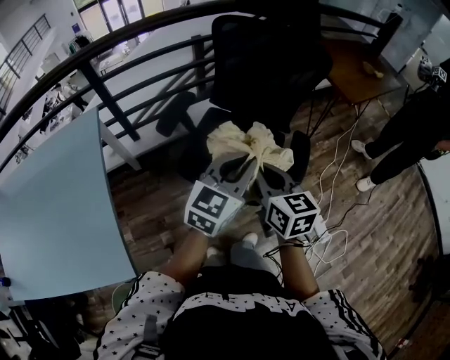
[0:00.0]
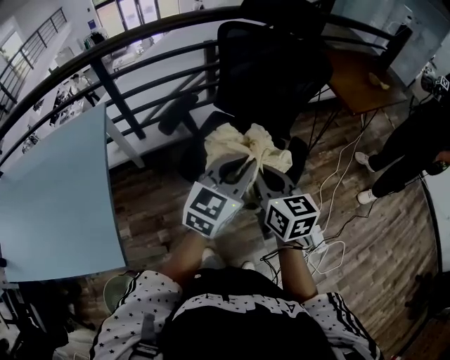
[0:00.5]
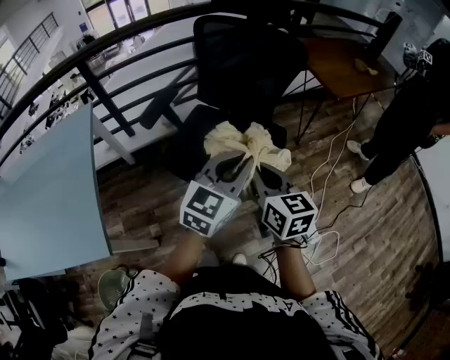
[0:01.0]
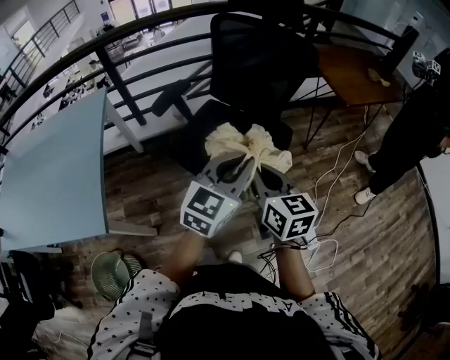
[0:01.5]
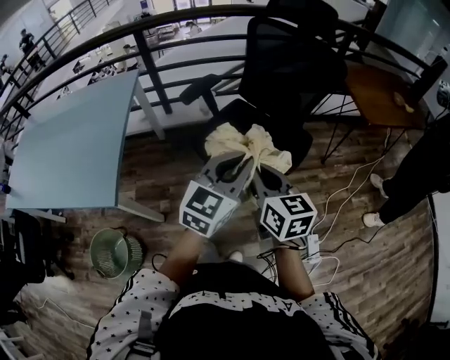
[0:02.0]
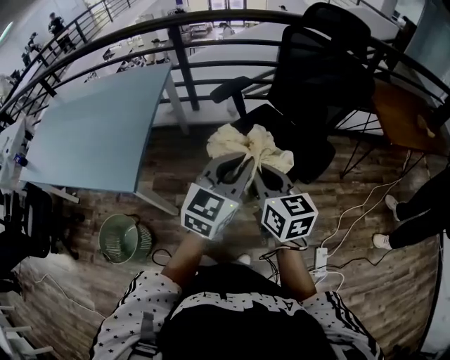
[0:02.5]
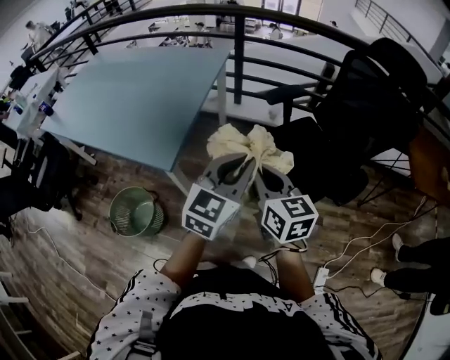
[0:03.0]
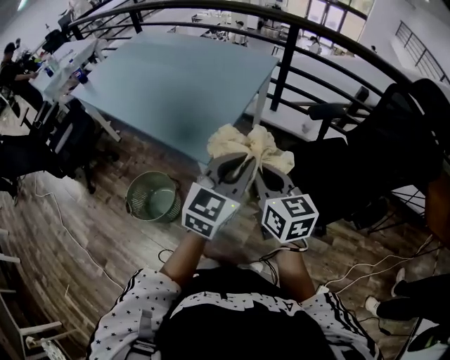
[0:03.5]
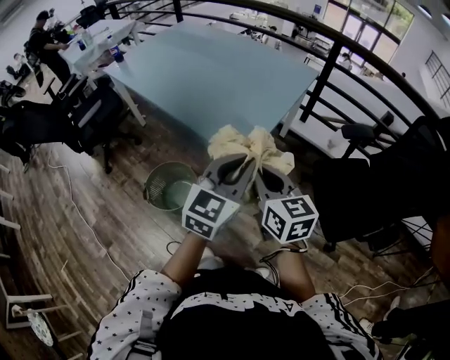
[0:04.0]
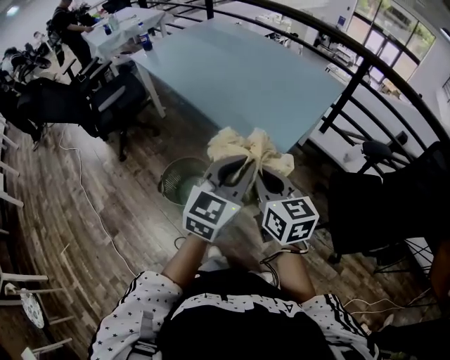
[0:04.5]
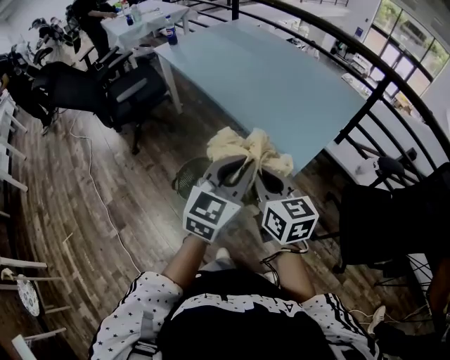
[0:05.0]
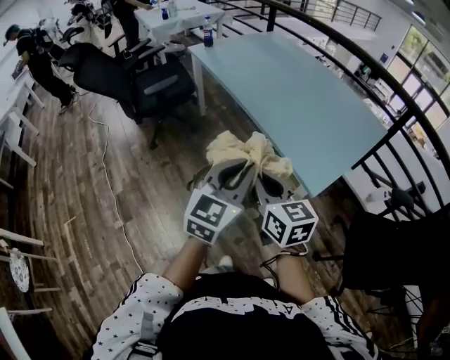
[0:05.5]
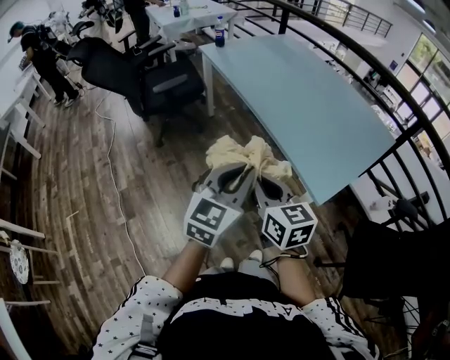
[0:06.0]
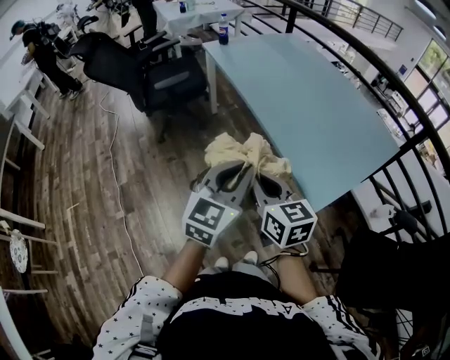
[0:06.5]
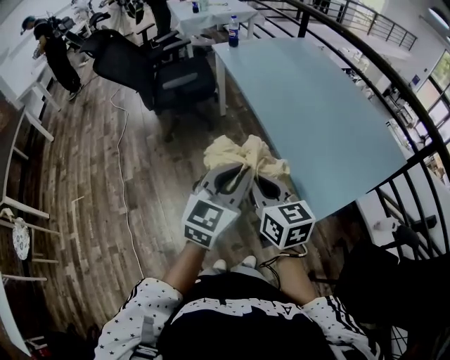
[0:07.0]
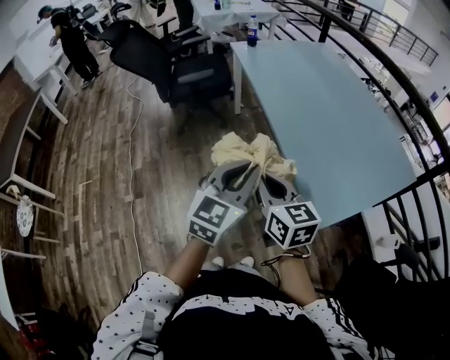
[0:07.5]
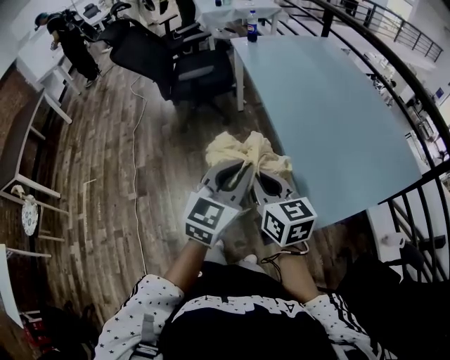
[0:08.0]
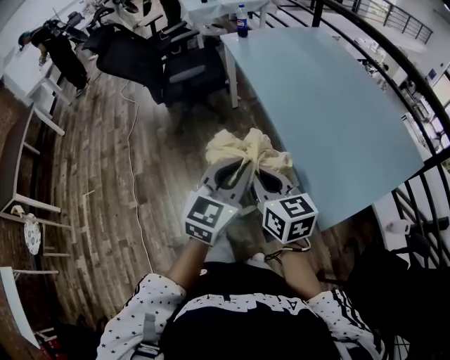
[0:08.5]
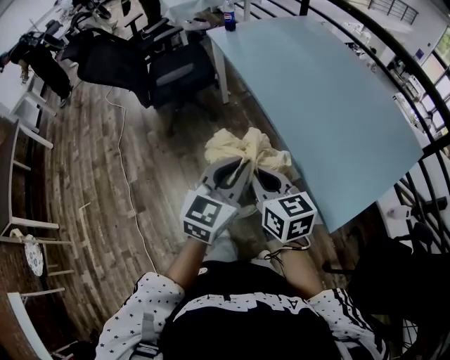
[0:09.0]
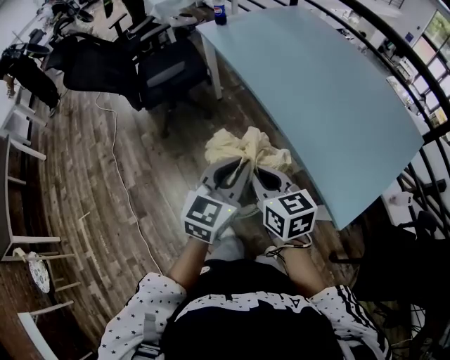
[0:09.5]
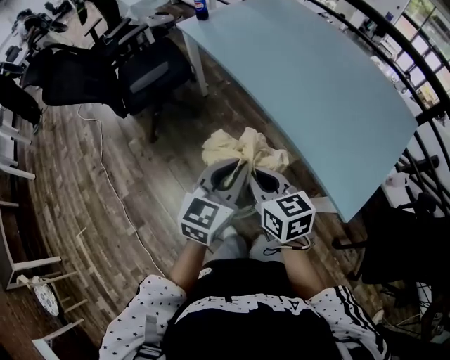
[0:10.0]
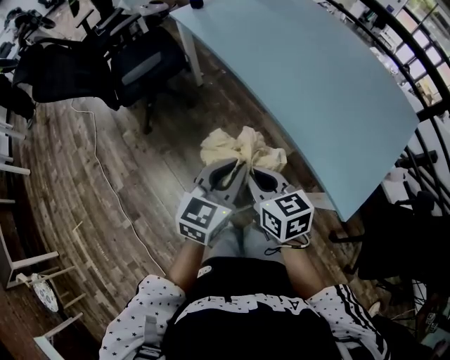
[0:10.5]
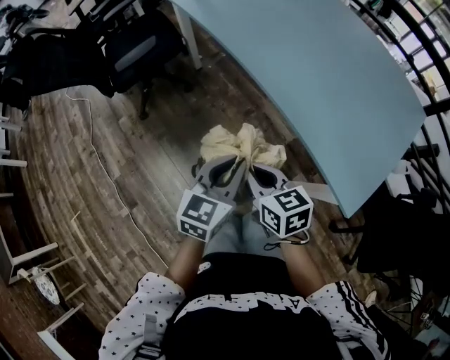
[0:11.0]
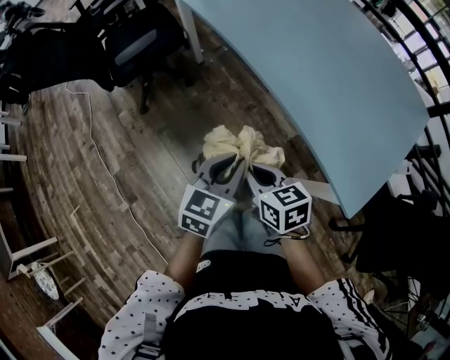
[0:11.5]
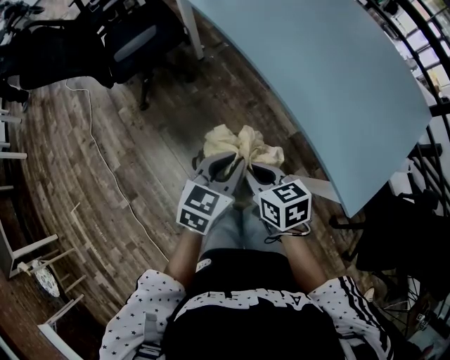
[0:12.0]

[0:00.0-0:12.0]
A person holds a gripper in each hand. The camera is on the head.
0:00.0 to 0:02.0: The two grippers go roughly 10 cm backward and to the right.
0:02.0 to 0:04.0: The pair of grippers is taken approximately 40 cm. The left gripper changes its angle by roughly 50 degrees, while the right gripper swivels approximately 50 degrees.
0:04.0 to 0:06.0: The grippers both shift to the left by some 30 cm. The left gripper turns by roughly 20 degrees. Meanwhile the right gripper changes its angle by about 20 degrees.
0:06.0 to 0:08.0: The grippers both shift forward by about 5 cm.
0:08.0 to 0:10.0: The grippers both shift forward, to the left and downward by approximately 20 cm. The left gripper swivels approximately 20 degrees.
0:10.0 to 0:12.0: The grippers both shift downward by approximately 10 cm.

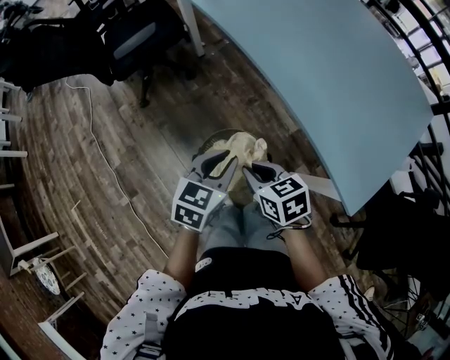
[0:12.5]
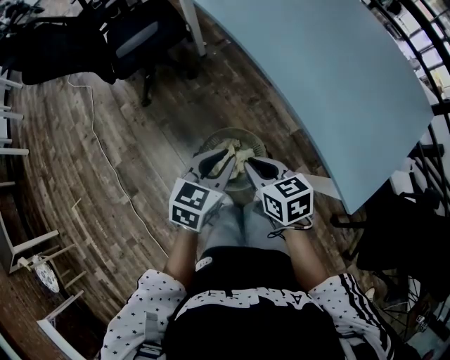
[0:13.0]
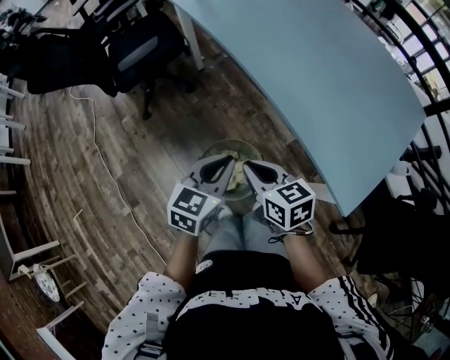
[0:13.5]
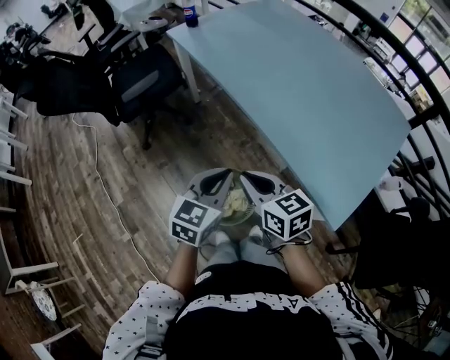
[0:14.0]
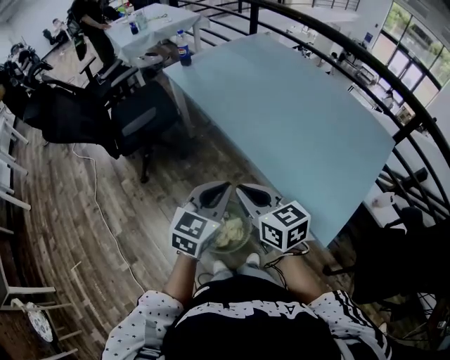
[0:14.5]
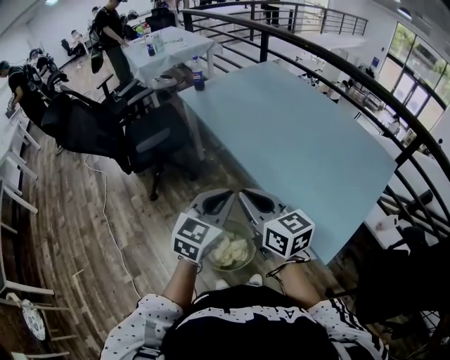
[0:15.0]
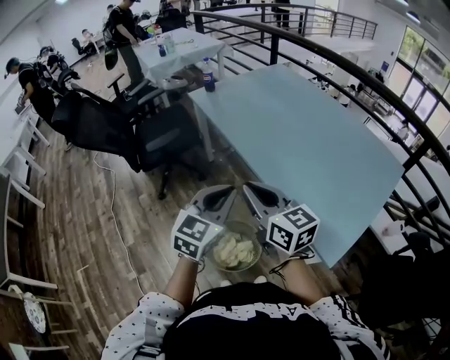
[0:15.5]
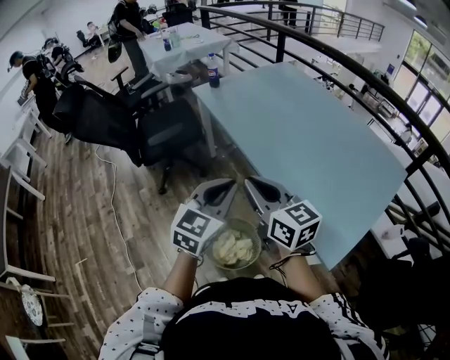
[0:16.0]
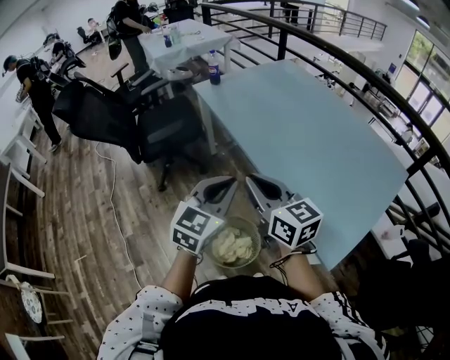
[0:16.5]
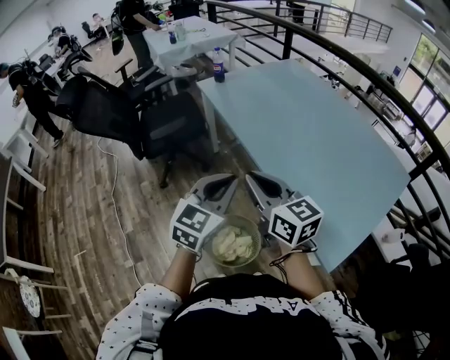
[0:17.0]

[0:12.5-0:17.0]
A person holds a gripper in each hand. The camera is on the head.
0:12.5 to 0:14.5: Both grippers move upward, roughly 15 cm. The right gripper rotates some 30 degrees.
0:14.5 to 0:17.0: Both grippers travel together upward, roughly 10 cm.

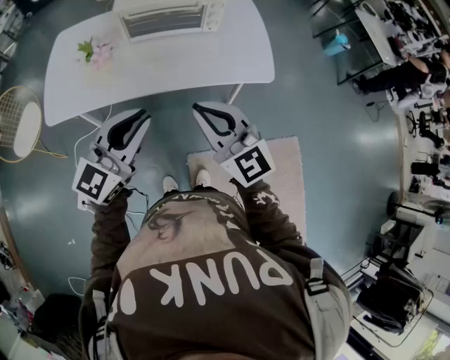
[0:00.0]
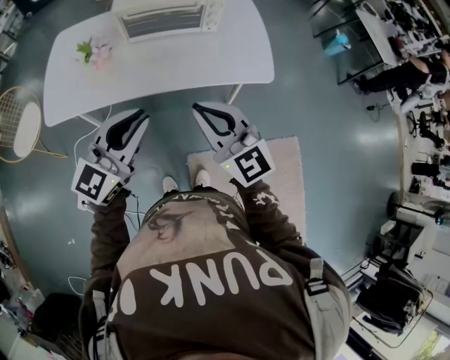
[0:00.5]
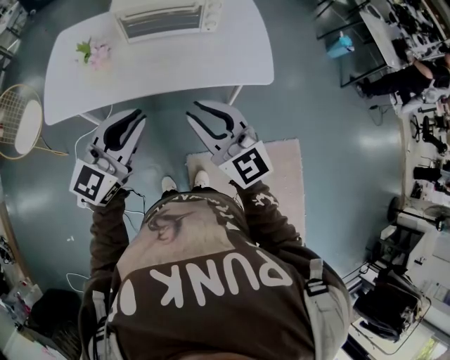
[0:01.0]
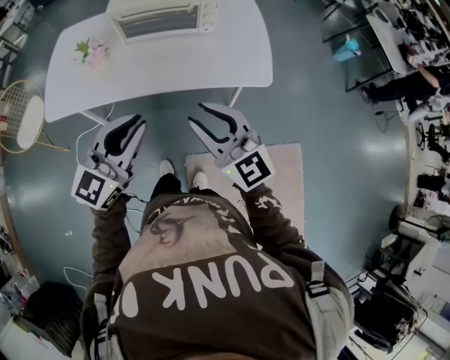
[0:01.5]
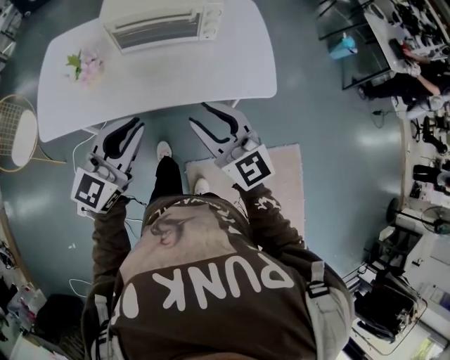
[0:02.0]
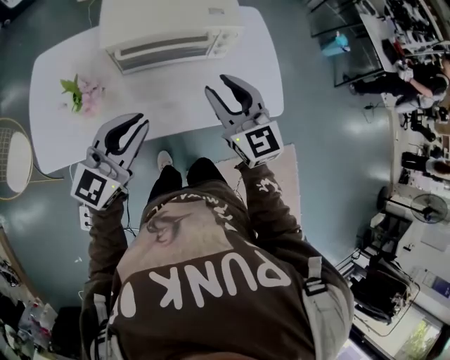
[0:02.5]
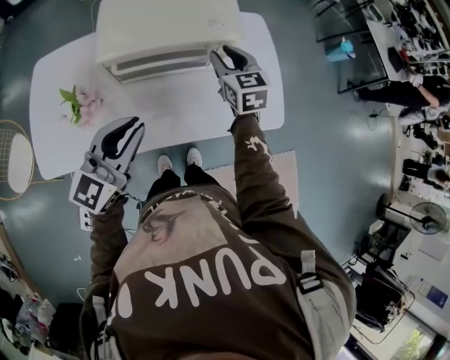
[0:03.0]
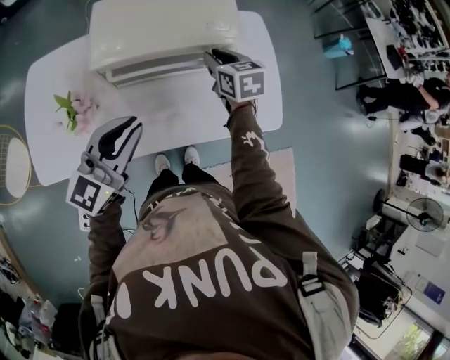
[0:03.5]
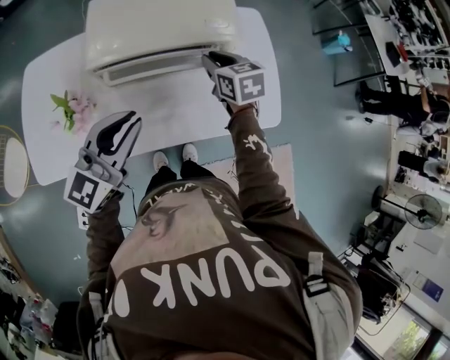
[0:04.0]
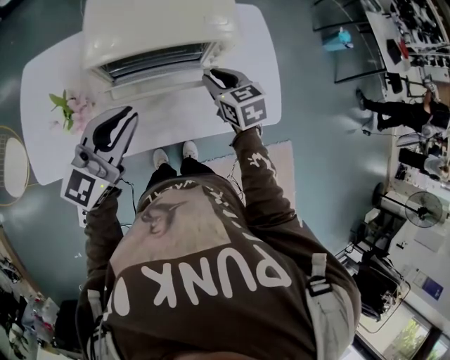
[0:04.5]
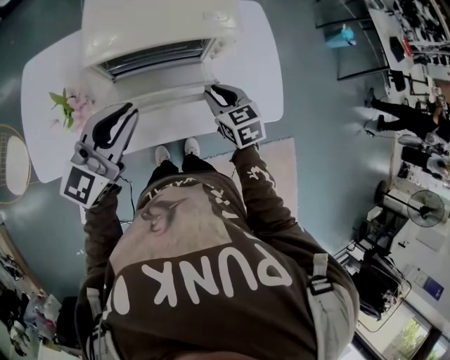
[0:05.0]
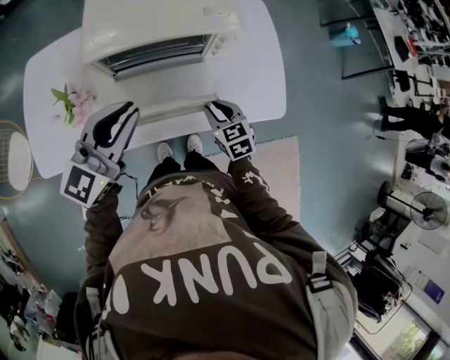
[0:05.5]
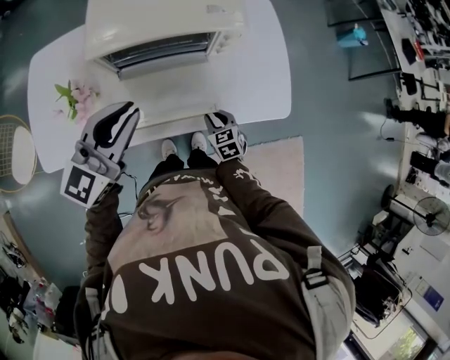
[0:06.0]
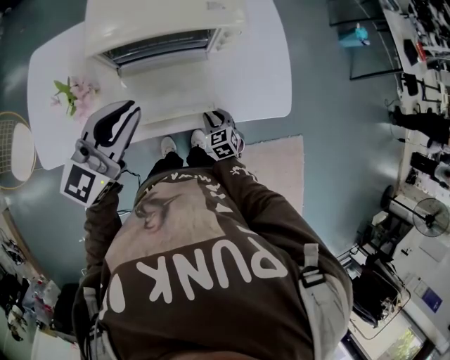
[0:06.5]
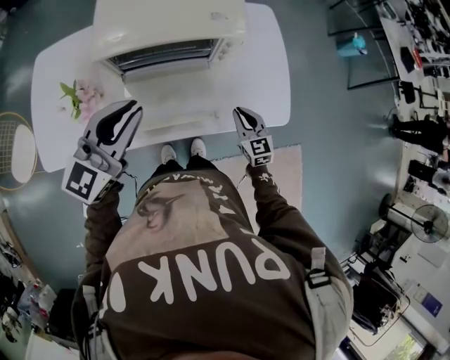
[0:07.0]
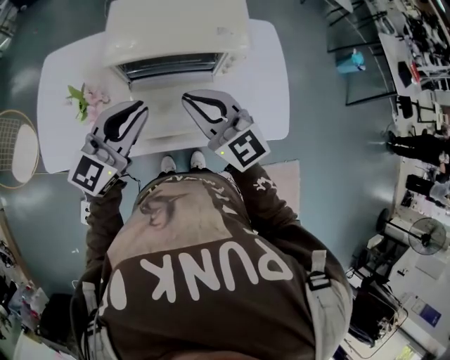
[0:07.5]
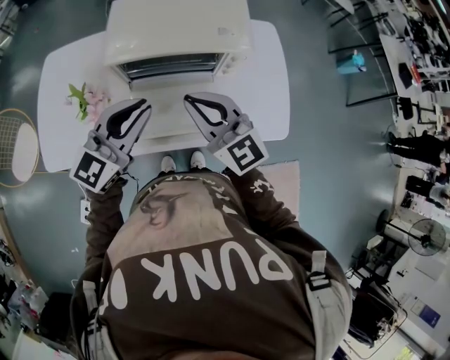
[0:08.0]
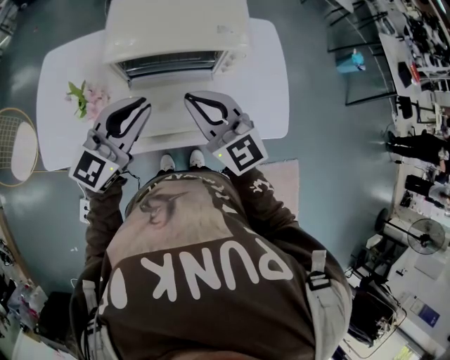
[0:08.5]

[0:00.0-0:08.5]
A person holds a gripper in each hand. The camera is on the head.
0:00.0 to 0:02.0: The two grippers go some 10 cm forward. The right gripper opens its fingers.
0:02.0 to 0:04.0: The left gripper shifts roughly 20 cm forward. Meanwhile the right gripper heads forward, covering about 35 cm, tips its fingers downward by about 30 degrees, and closes.
0:04.0 to 0:06.5: The right gripper is displaced downward and backward by roughly 30 cm.
0:06.5 to 0:08.5: The right gripper moves upward, roughly 35 cm, and points its fingers some 40 degrees further upward.

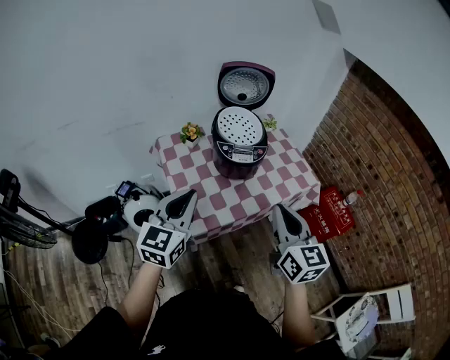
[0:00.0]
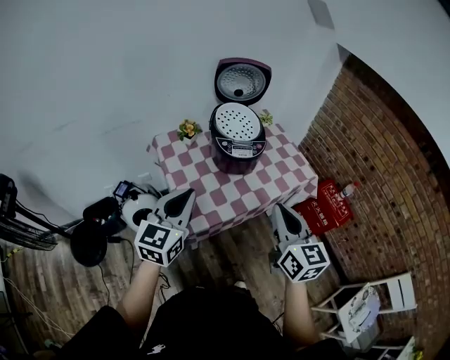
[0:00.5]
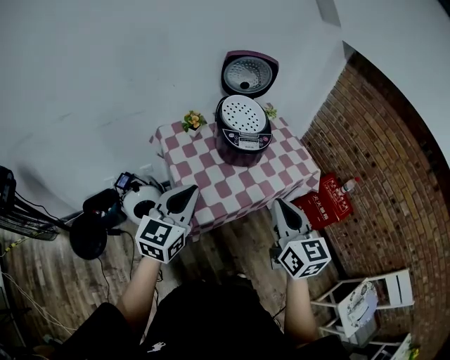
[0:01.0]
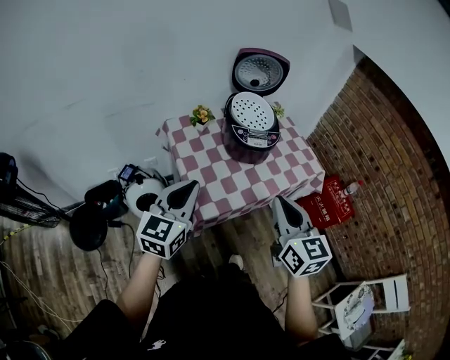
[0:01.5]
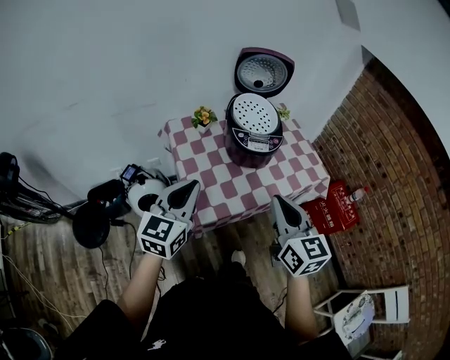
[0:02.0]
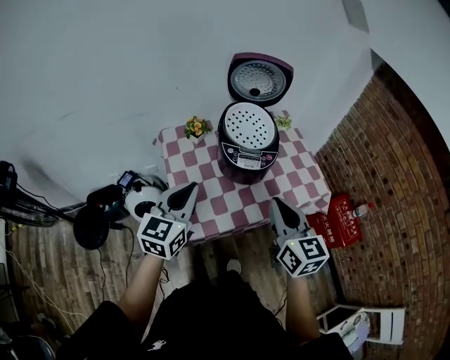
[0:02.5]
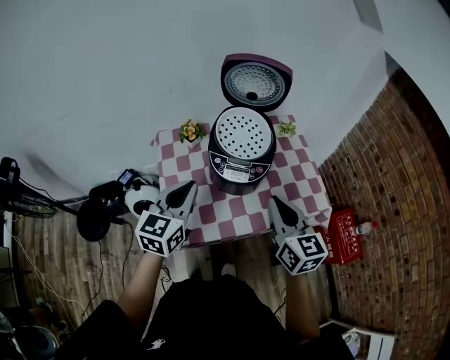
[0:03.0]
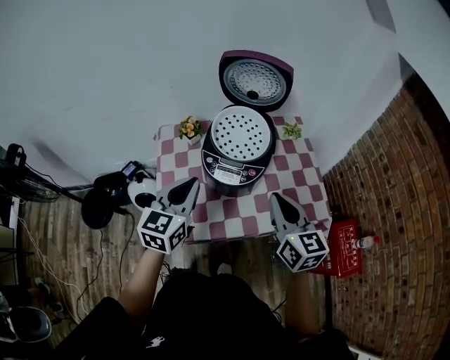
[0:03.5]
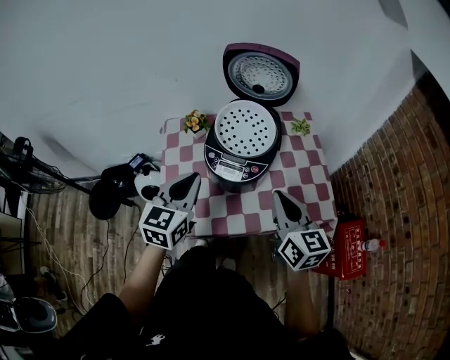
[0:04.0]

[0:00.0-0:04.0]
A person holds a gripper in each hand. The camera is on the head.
0:00.0 to 0:02.0: The right gripper goes approximately 5 cm to the left. The left gripper moves about 5 cm.
0:02.0 to 0:04.0: The left gripper shifts roughly 20 cm to the right and forward, and turns by about 20 degrees. Meanwhile the right gripper heads forward and to the right, covering roughly 25 cm.
